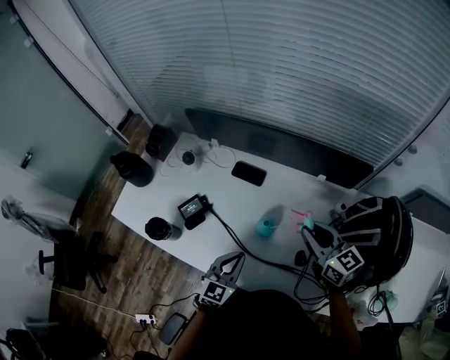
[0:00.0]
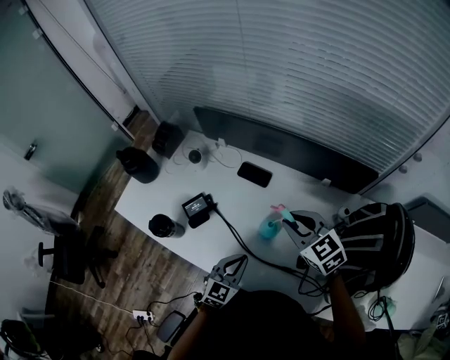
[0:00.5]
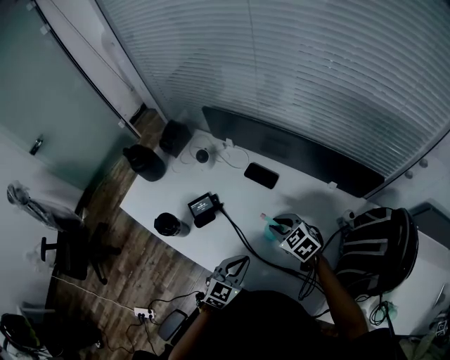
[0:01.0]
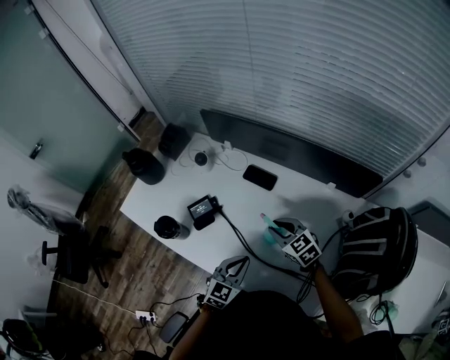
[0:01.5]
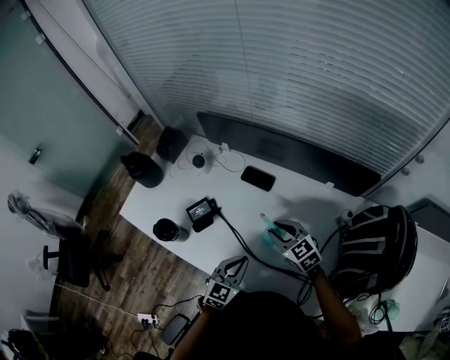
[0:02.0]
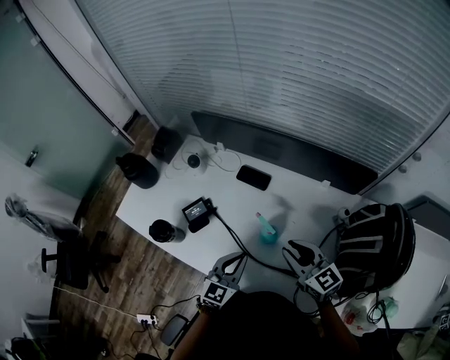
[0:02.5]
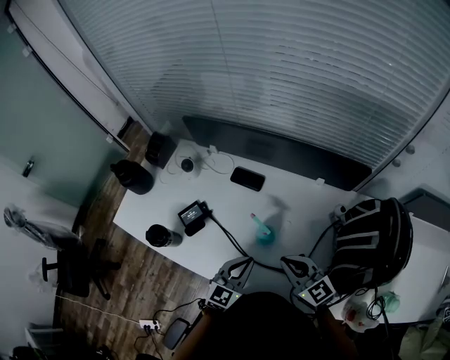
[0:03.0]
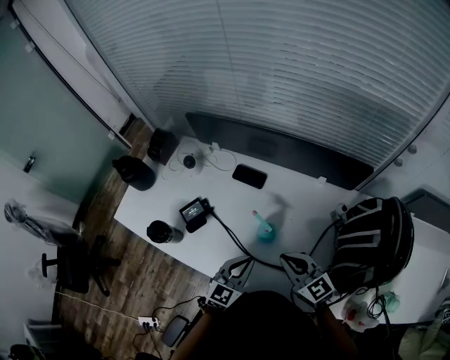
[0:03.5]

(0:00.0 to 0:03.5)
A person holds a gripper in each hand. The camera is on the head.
0:00.0 - 0:02.0: The right gripper moves to the left and downward, approximately 15 cm, and turns by about 30 degrees.
0:02.0 - 0:03.5: The right gripper shifts roughly 10 cm backward and upward, and closes up.

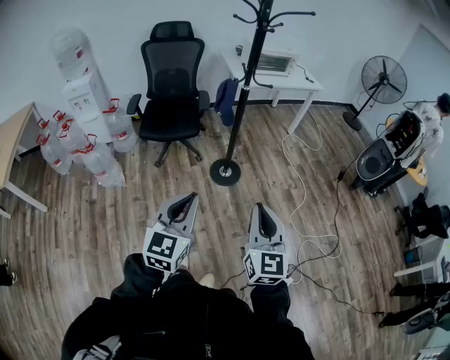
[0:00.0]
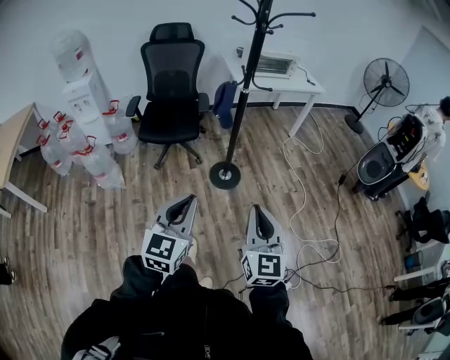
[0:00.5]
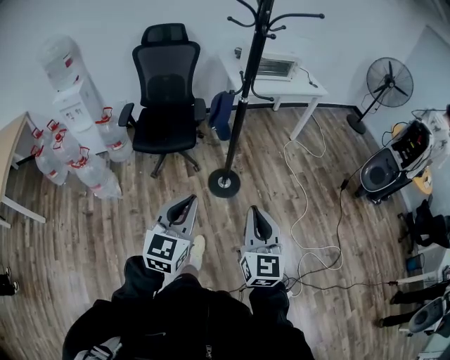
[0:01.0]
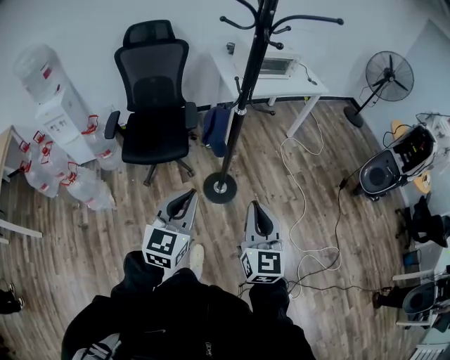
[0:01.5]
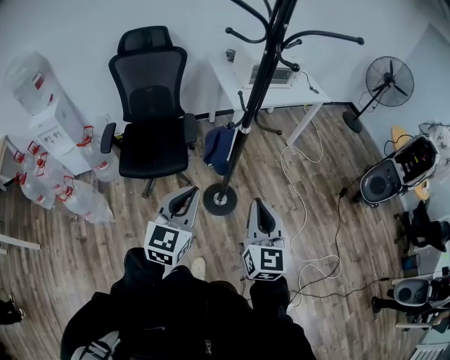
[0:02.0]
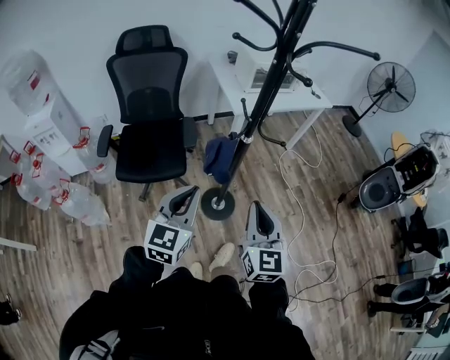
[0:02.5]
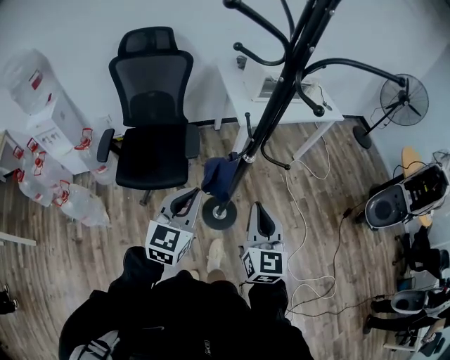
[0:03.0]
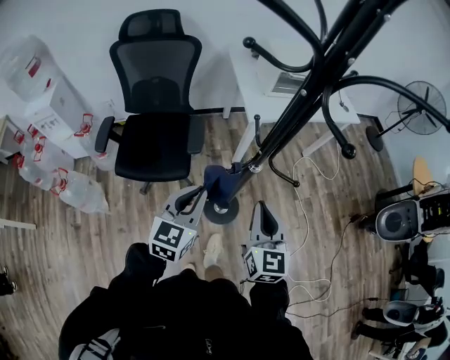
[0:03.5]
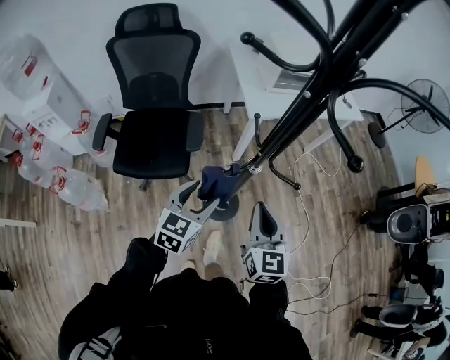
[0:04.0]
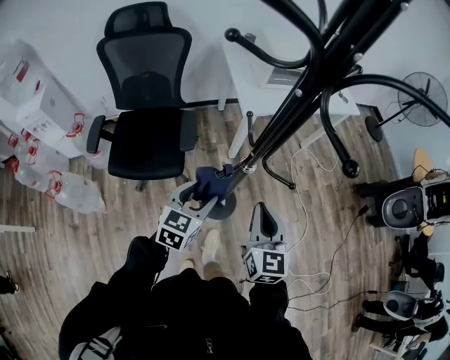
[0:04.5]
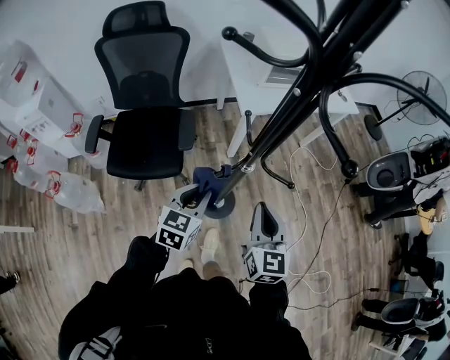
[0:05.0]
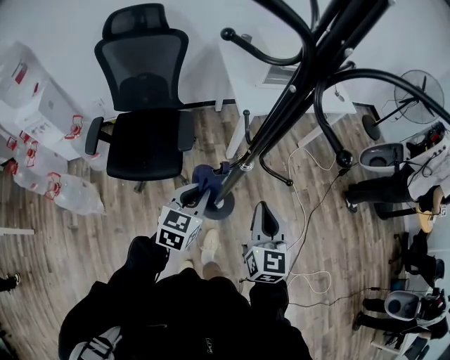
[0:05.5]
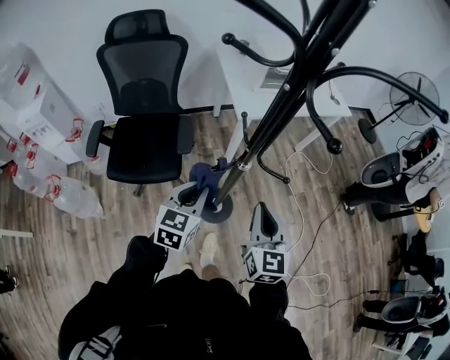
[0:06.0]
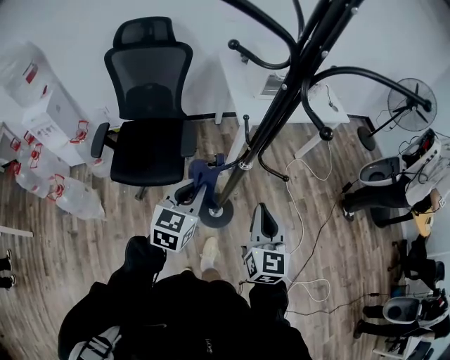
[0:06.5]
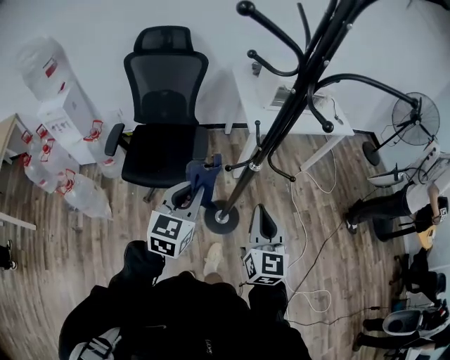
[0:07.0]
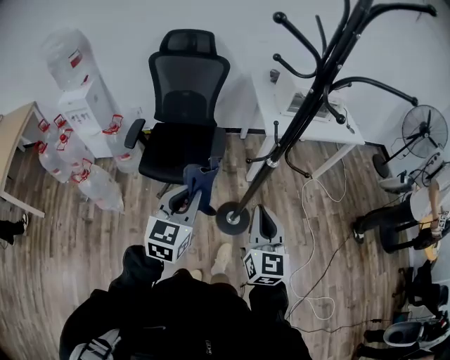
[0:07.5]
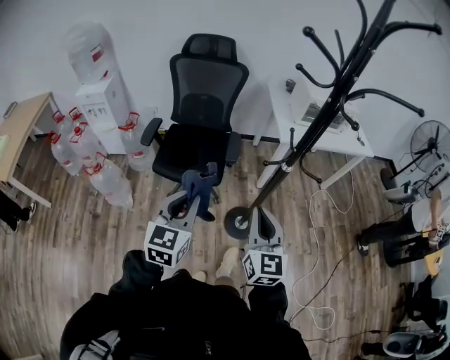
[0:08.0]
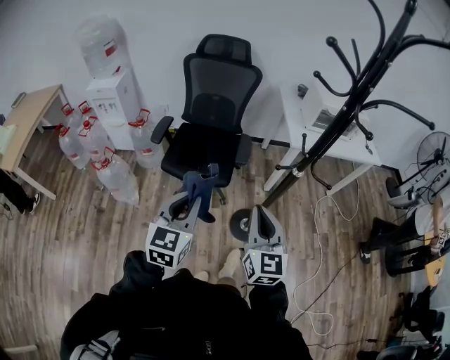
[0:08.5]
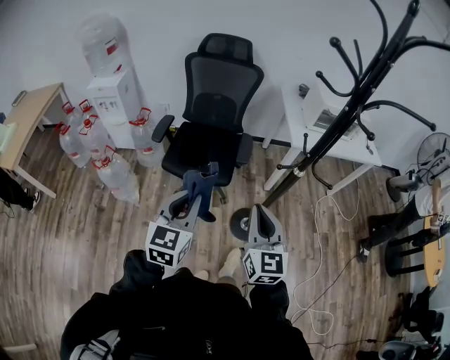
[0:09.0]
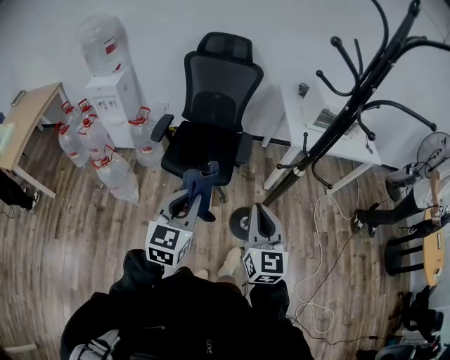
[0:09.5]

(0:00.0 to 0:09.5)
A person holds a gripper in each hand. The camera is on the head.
0:00.0 - 0:02.0: The two grippers travel together, forward, some 50 cm.
0:02.0 - 0:04.0: The left gripper heads forward and downward, covering roughly 30 cm, and opens its fingers. The right gripper heads forward, covering roughly 25 cm.
0:04.0 - 0:05.5: The left gripper closes its fingers.
0:05.5 - 0:07.5: The left gripper heads backward, upward and to the left, covering some 25 cm, and turns by approximately 20 degrees; the right gripper travels backward, to the left and upward by roughly 20 cm.
0:07.5 - 0:09.5: The left gripper shifts about 10 cm to the left and backward; the right gripper goes roughly 10 cm to the left.

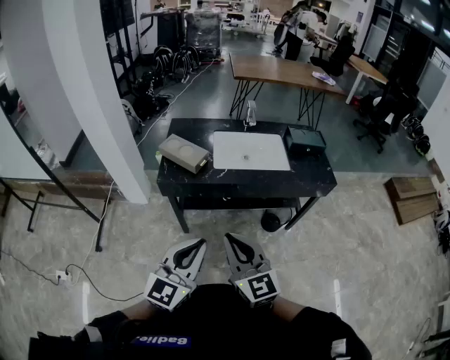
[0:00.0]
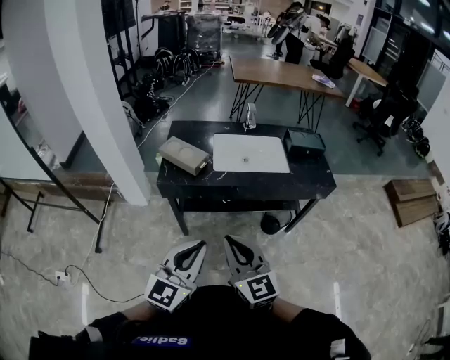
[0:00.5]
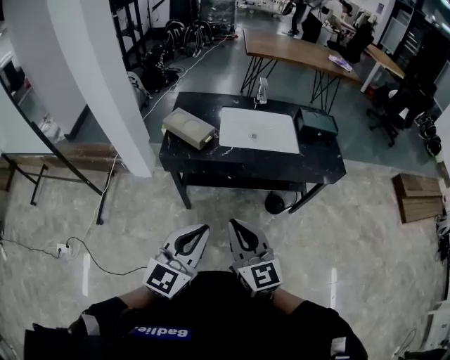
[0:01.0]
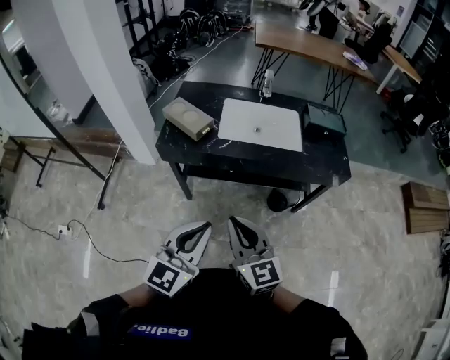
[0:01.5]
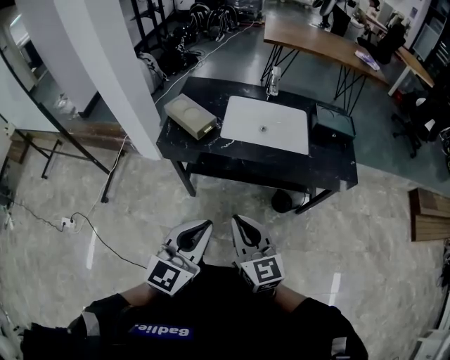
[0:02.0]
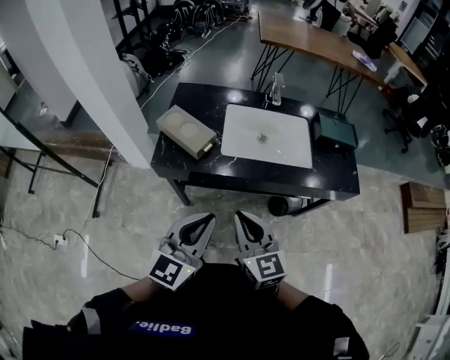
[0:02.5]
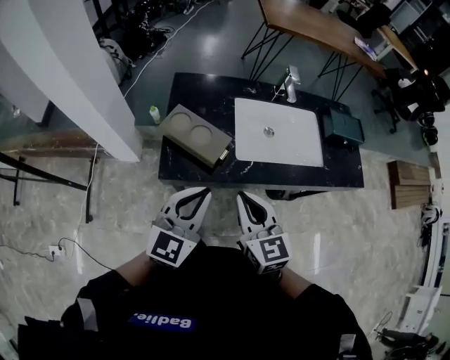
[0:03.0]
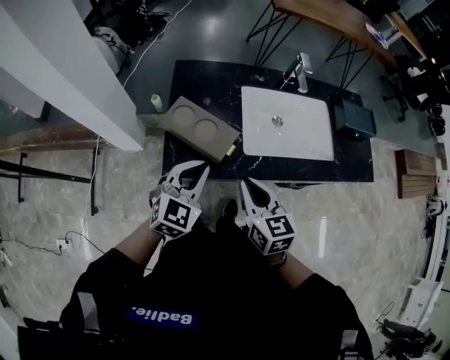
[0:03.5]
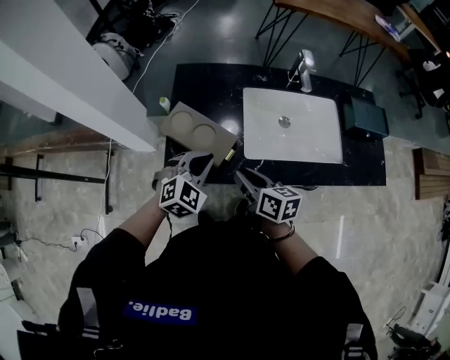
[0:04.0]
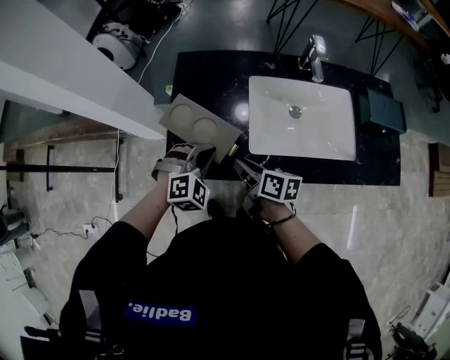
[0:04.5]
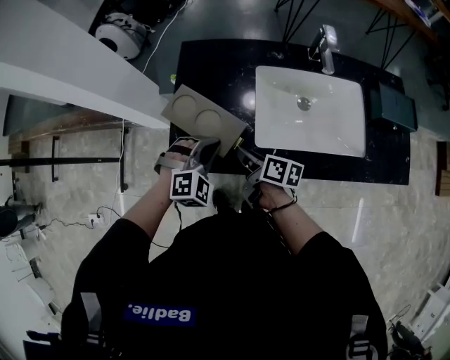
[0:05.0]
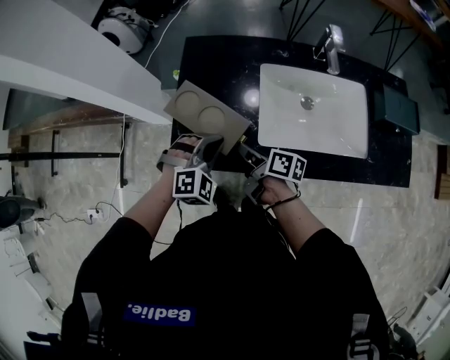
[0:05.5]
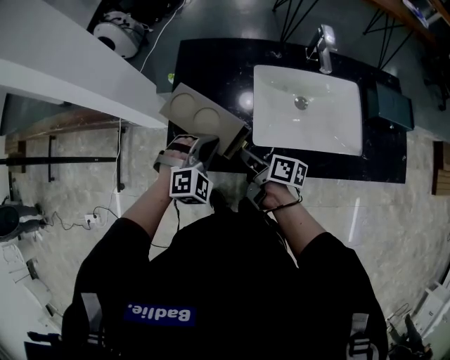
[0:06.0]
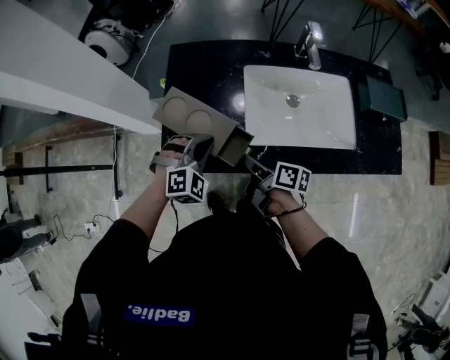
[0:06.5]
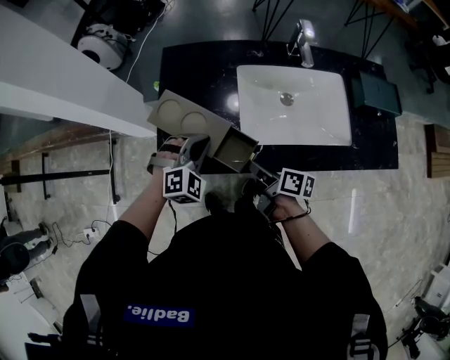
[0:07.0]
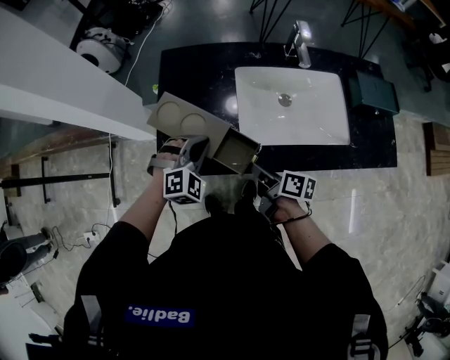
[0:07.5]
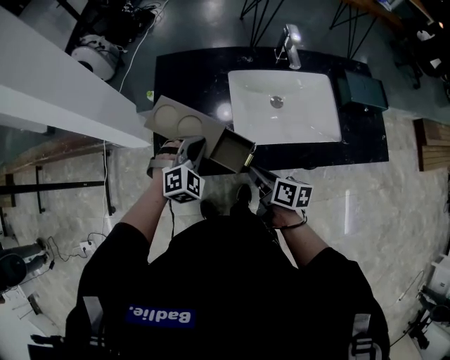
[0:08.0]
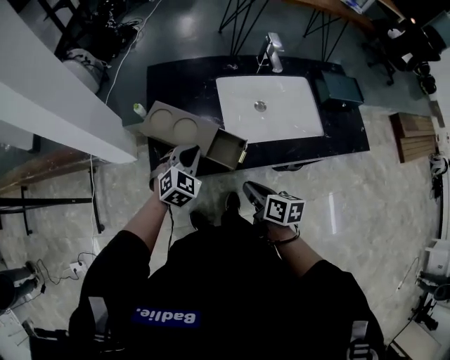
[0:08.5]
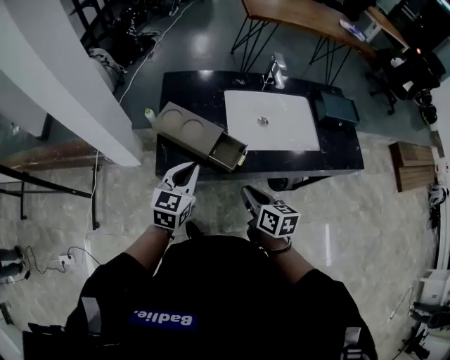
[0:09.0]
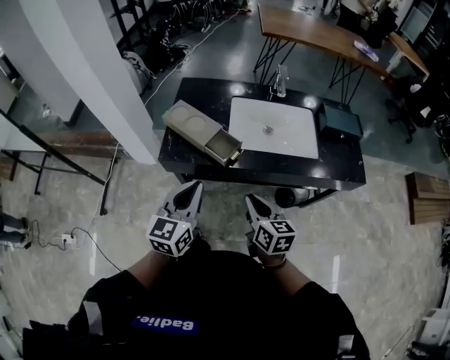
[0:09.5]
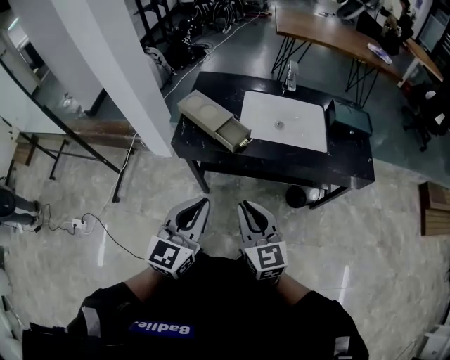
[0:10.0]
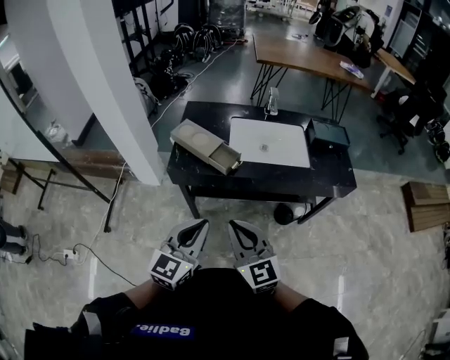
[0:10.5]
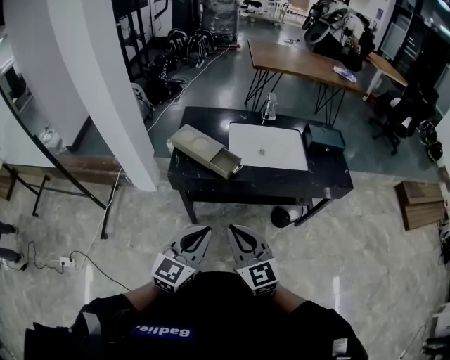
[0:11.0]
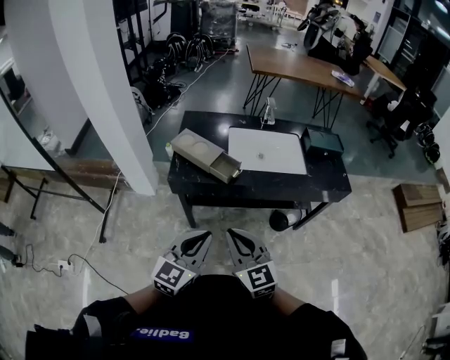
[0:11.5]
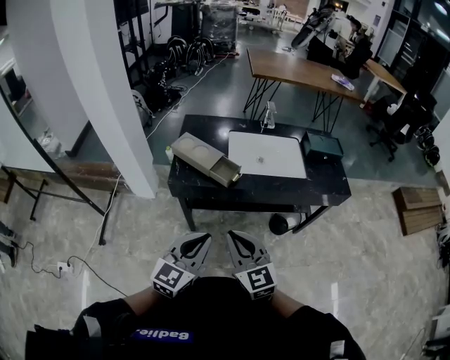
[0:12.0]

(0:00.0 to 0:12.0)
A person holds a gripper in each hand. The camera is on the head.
0:00.0 - 0:02.0: The left gripper shifts approximately 10 cm to the right, while the right gripper moves to the right, downward and forward, some 15 cm.
0:02.0 - 0:04.0: The left gripper is displaced forward, downward and to the left by about 50 cm, and angles its fingers downward, by some 30 degrees. The right gripper moves forward, to the left and downward, approximately 40 cm, and changes its angle by roughly 40 degrees.
0:04.0 - 0:06.0: The left gripper ends up some 5 cm from where it was, and turns by about 20 degrees. The right gripper heads downward, covering roughly 10 cm, and changes its angle by some 30 degrees.
0:06.0 - 0:08.0: The right gripper moves backward and to the right, some 10 cm.
0:08.0 - 0:10.0: The grippers both shift backward and upward by approximately 35 cm. The left gripper rolls counterclockwise, seen from behind, by approximately 50 degrees. Meanwhile the right gripper rotates around the line of its fingers by roughly 50 degrees, counterclockwise from behind.
0:10.0 - 0:12.0: The right gripper is displaced to the left by about 5 cm.

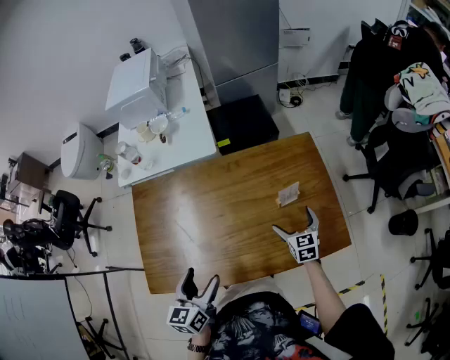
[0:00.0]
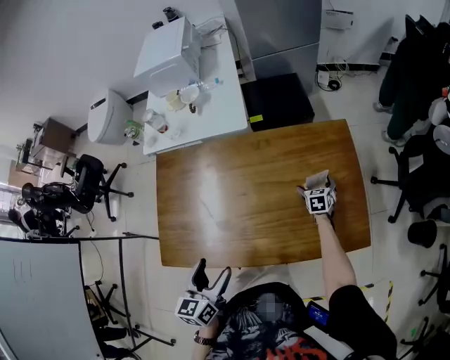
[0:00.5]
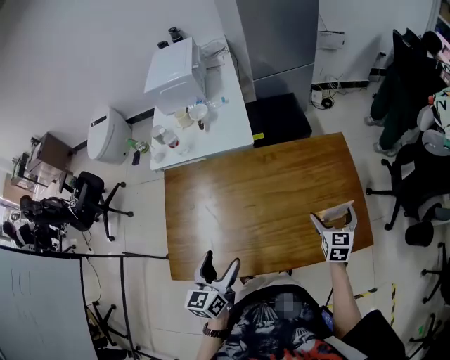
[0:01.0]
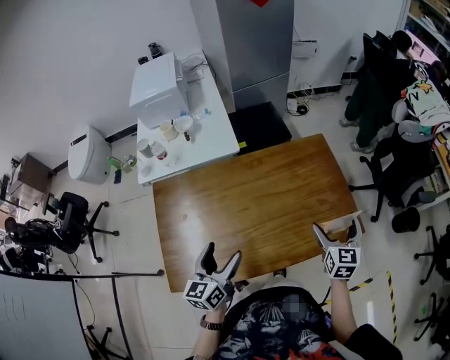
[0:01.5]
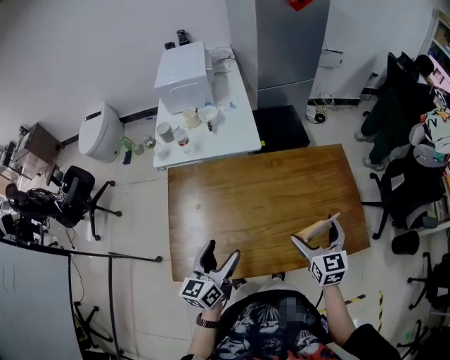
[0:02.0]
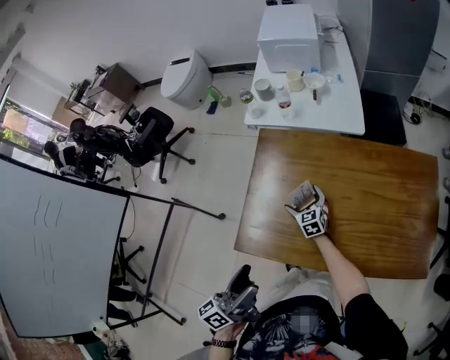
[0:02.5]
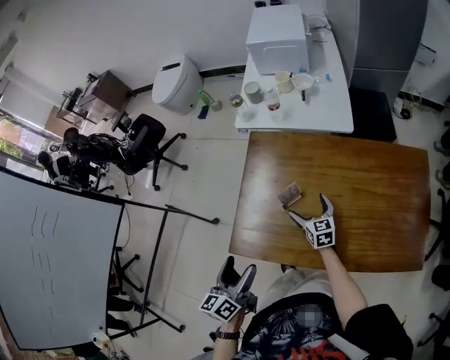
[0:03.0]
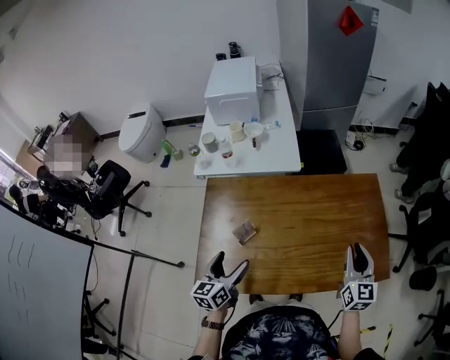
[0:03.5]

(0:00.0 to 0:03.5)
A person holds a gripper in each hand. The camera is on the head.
0:00.0 - 0:02.0: The right gripper is displaced upward and to the left by about 20 cm. Meanwhile the left gripper is displaced to the left by some 10 cm.
0:02.0 - 0:03.5: The right gripper travels downward and back again, roughly 25 cm each way, and closes its fingers.
